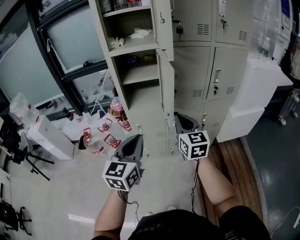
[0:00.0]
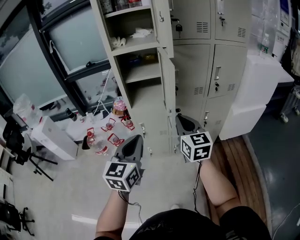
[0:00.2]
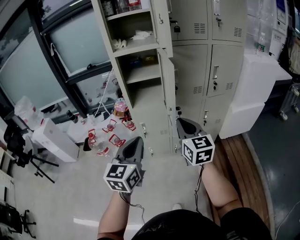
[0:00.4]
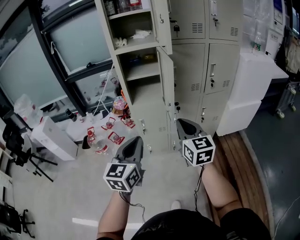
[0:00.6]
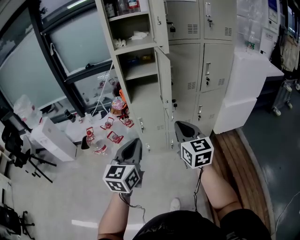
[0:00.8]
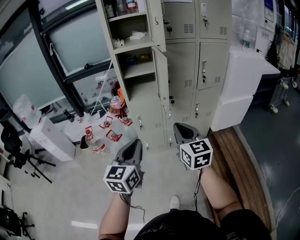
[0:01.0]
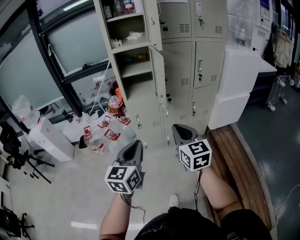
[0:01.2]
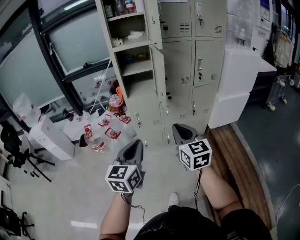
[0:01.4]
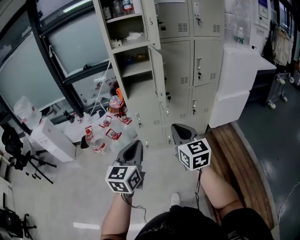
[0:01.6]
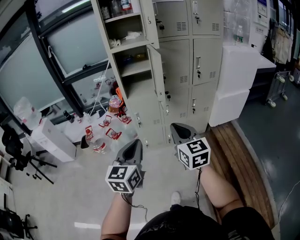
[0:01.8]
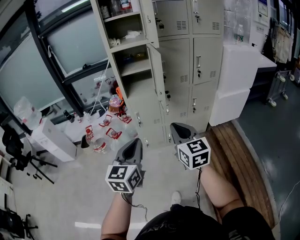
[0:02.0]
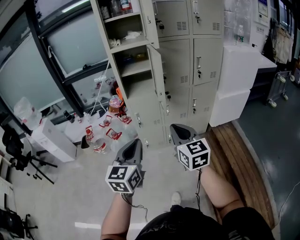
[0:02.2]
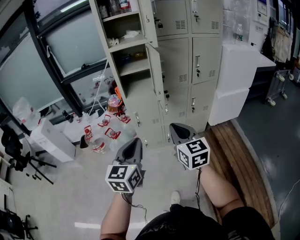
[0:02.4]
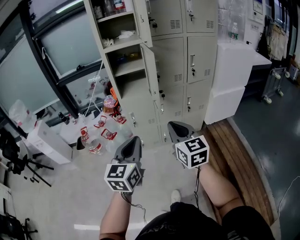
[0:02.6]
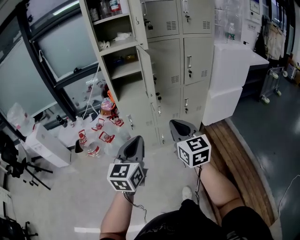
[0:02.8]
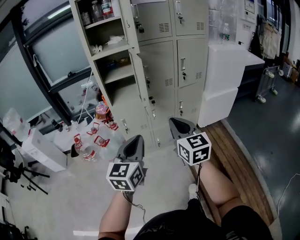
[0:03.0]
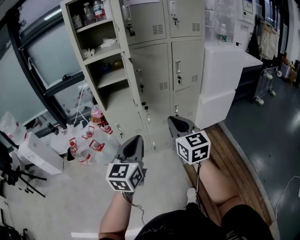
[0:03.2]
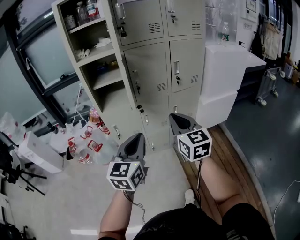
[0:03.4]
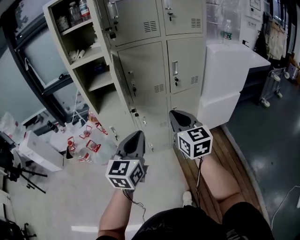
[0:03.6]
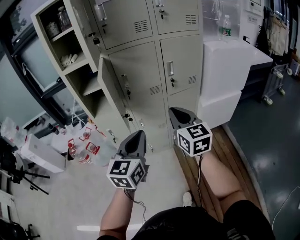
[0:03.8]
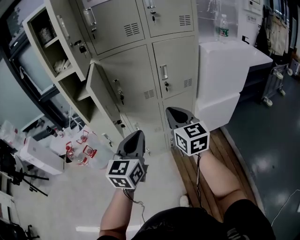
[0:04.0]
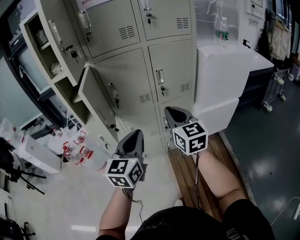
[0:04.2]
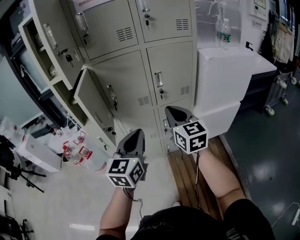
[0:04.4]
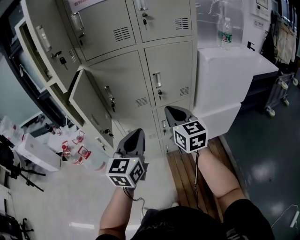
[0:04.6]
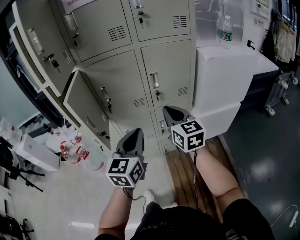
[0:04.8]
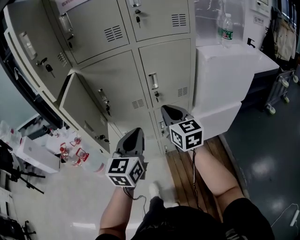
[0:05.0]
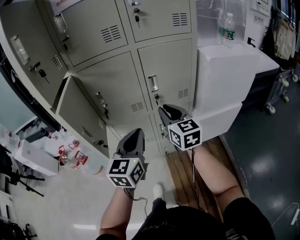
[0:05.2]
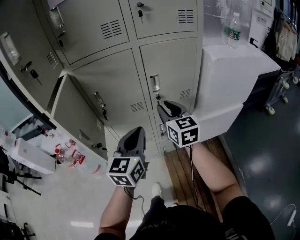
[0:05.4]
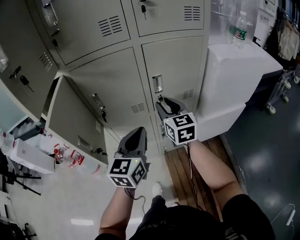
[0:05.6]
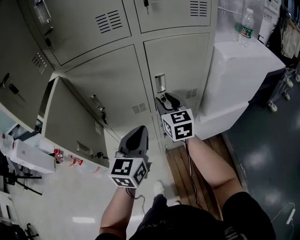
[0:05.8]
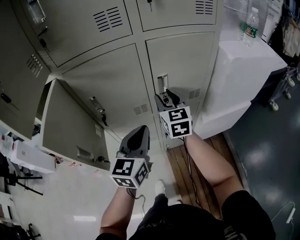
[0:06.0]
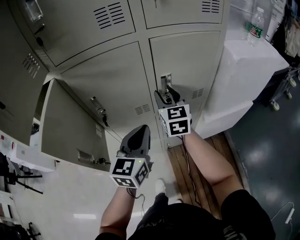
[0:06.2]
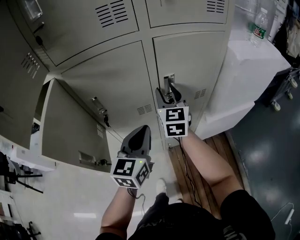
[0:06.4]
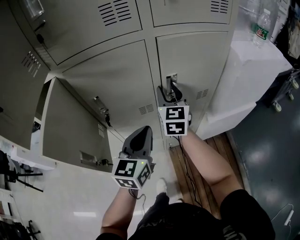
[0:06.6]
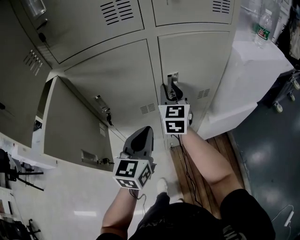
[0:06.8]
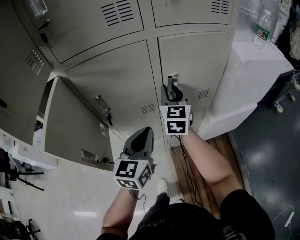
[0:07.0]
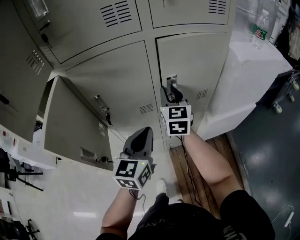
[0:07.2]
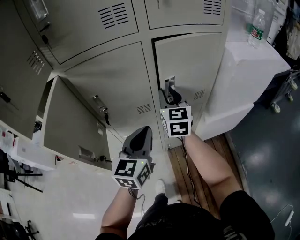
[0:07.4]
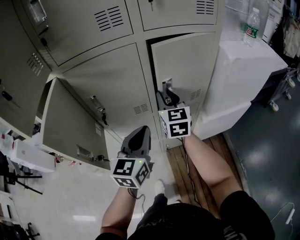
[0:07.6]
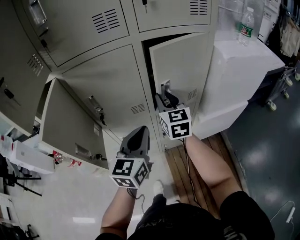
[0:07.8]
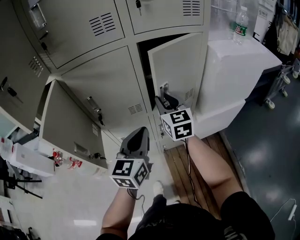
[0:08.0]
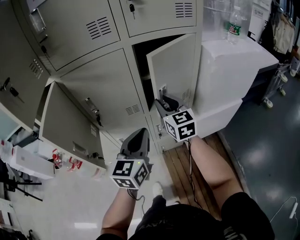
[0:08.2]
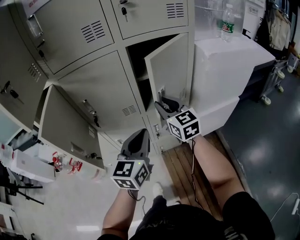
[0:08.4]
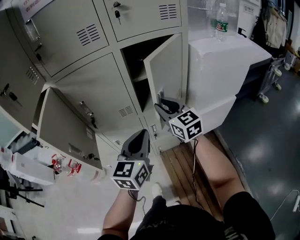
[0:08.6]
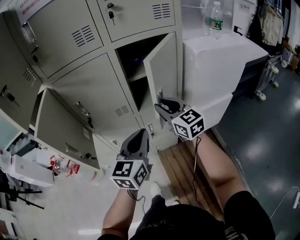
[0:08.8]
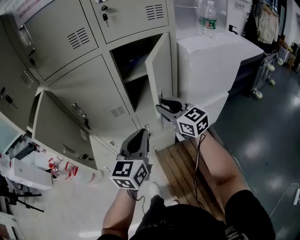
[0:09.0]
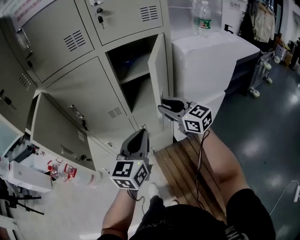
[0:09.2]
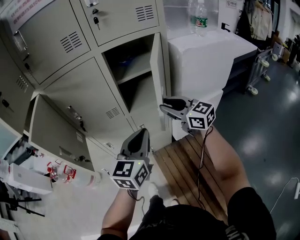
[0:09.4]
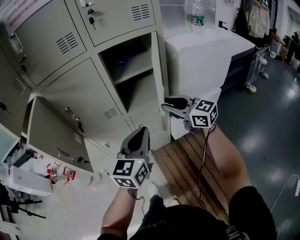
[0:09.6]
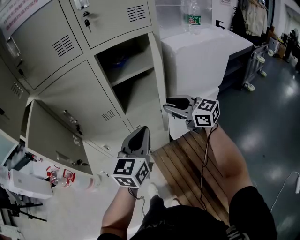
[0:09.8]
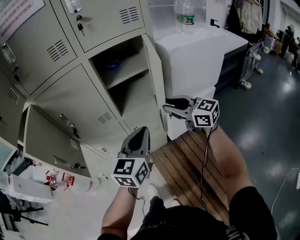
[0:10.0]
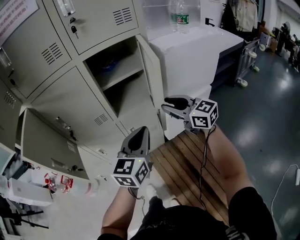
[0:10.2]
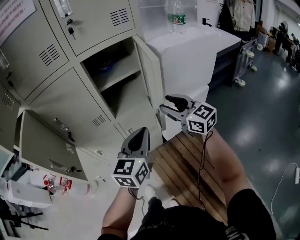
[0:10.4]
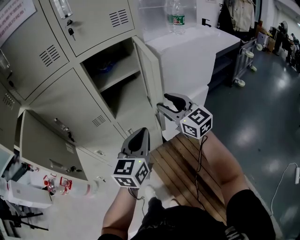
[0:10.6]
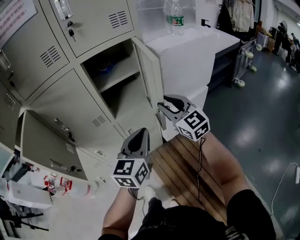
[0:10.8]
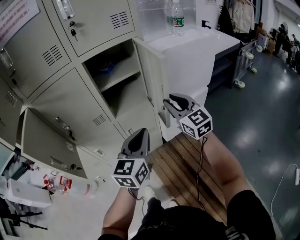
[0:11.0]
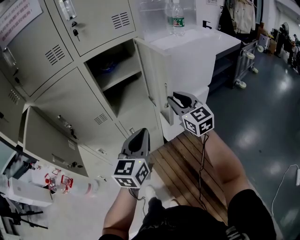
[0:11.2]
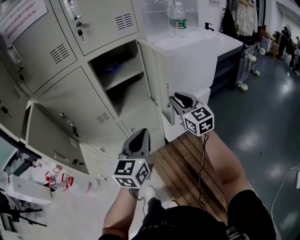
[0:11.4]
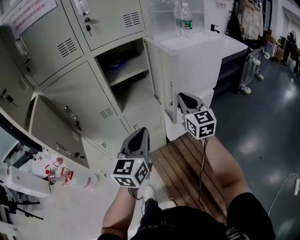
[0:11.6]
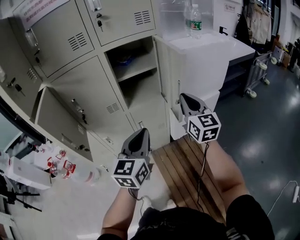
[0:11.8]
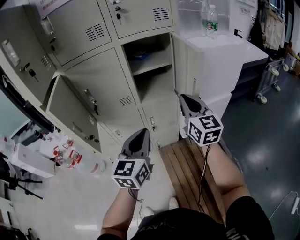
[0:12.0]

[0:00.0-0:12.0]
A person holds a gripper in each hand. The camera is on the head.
0.0 to 1.6 s: The grippers both shift backward by some 25 cm.
1.6 to 3.0 s: The two grippers go roughly 10 cm to the right.
3.0 to 4.4 s: The right gripper shifts about 35 cm forward and to the right; the left gripper shifts approximately 35 cm to the right and forward.
4.4 to 6.0 s: Both grippers travel together forward, about 25 cm. The right gripper opens up.
6.0 to 7.6 s: The grippers move only a little.
7.6 to 9.0 s: The left gripper heads to the right and backward, covering some 10 cm. The right gripper travels backward and to the right by about 15 cm, and swivels roughly 20 degrees.
9.0 to 10.4 s: Both grippers move to the right, roughly 10 cm.
10.4 to 12.0 s: The right gripper travels backward and upward by some 10 cm, and closes its fingers. Meanwhile the left gripper heads backward and to the left, covering about 10 cm.

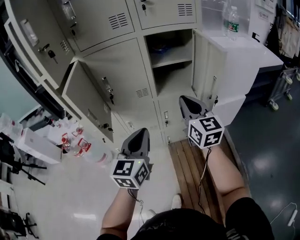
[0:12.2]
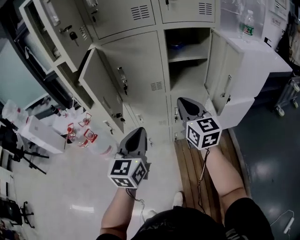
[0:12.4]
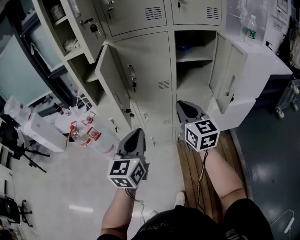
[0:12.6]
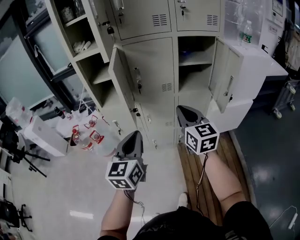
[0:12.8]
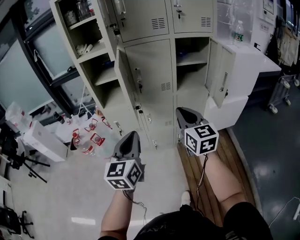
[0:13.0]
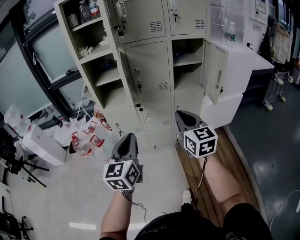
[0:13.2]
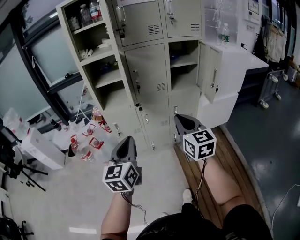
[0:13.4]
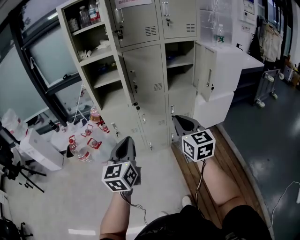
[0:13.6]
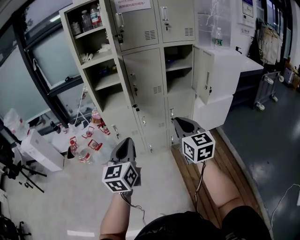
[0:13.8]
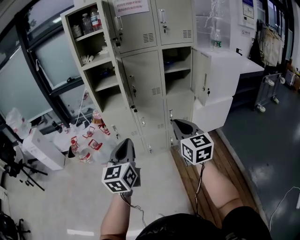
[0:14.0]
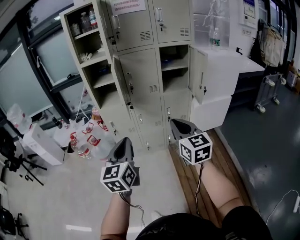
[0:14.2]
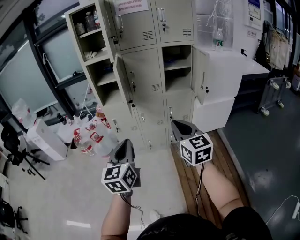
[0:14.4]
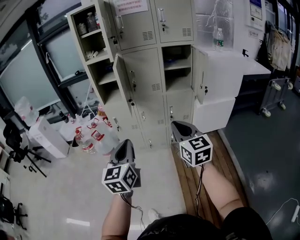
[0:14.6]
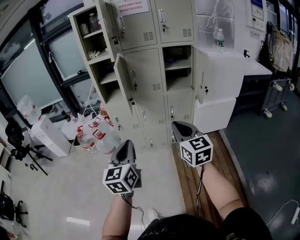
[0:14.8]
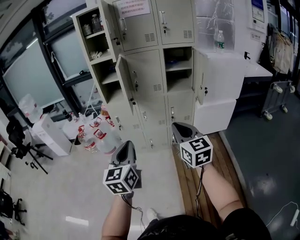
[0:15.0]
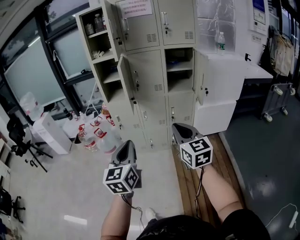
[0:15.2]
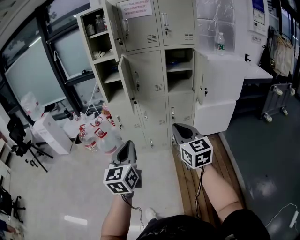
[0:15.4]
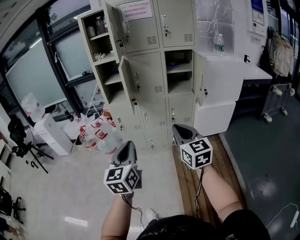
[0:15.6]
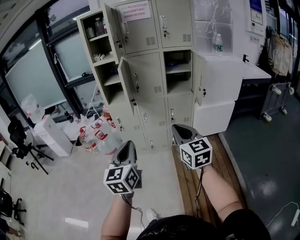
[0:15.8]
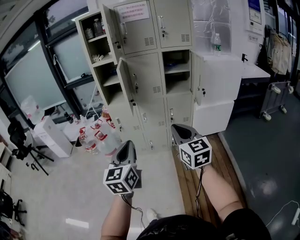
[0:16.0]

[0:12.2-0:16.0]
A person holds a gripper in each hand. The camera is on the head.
12.2 to 13.4 s: The right gripper goes approximately 30 cm backward and to the left, while the left gripper heads to the left and backward, covering about 30 cm.
13.4 to 14.8 s: The two grippers go approximately 15 cm backward and to the right.
14.8 to 16.0 s: The left gripper ends up about 5 cm from where it was.

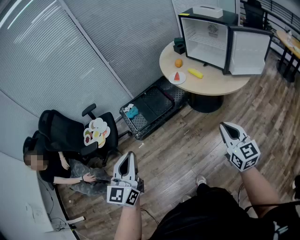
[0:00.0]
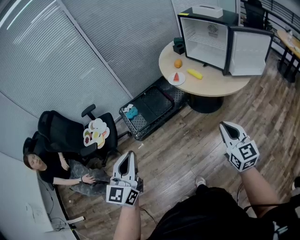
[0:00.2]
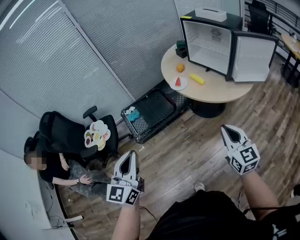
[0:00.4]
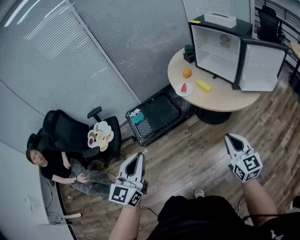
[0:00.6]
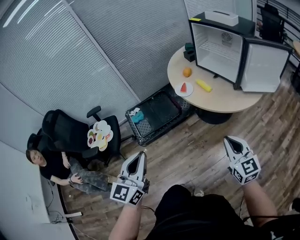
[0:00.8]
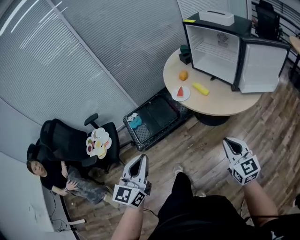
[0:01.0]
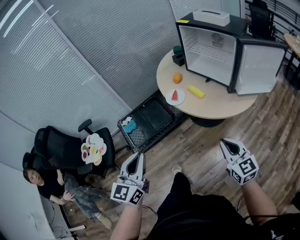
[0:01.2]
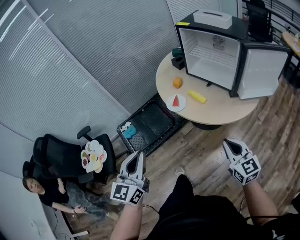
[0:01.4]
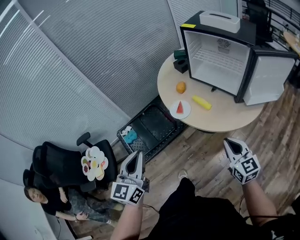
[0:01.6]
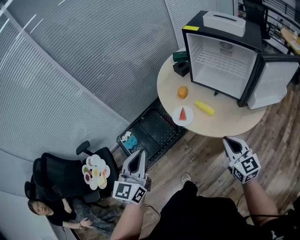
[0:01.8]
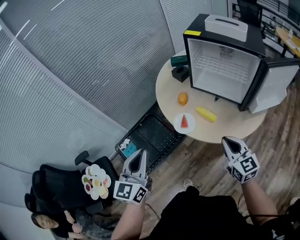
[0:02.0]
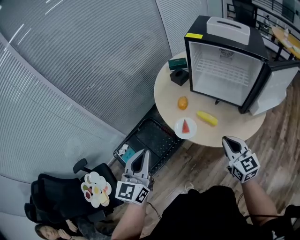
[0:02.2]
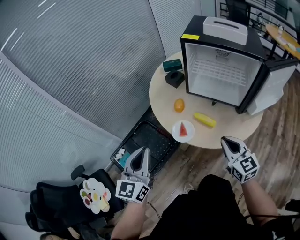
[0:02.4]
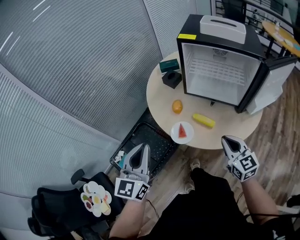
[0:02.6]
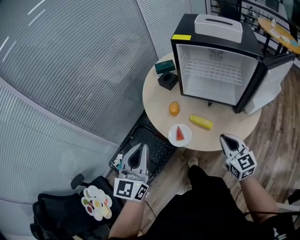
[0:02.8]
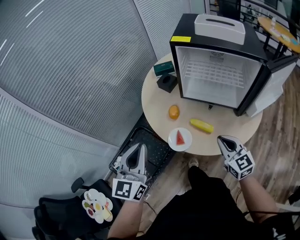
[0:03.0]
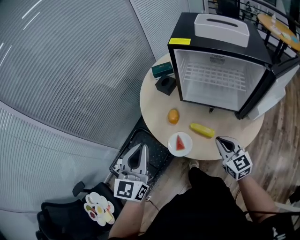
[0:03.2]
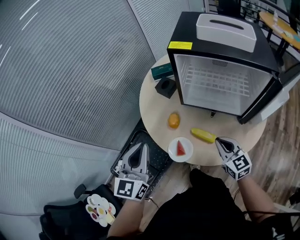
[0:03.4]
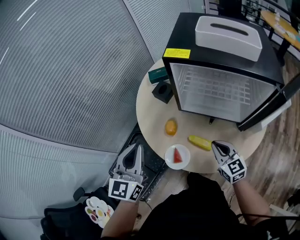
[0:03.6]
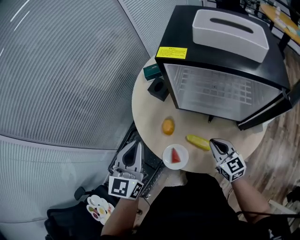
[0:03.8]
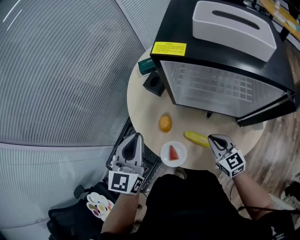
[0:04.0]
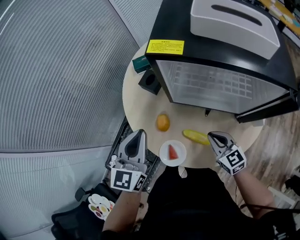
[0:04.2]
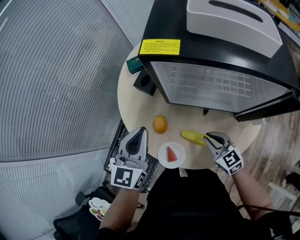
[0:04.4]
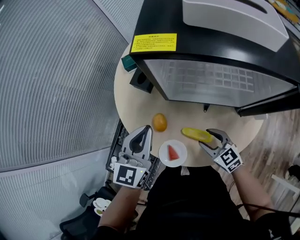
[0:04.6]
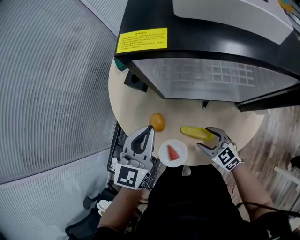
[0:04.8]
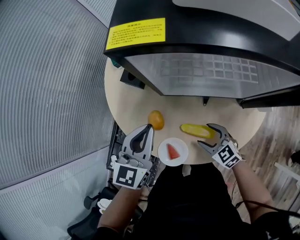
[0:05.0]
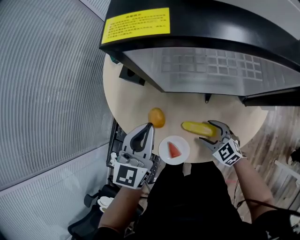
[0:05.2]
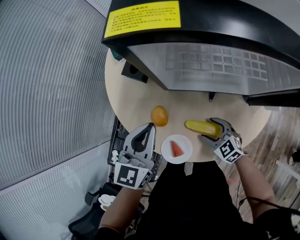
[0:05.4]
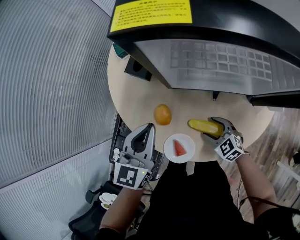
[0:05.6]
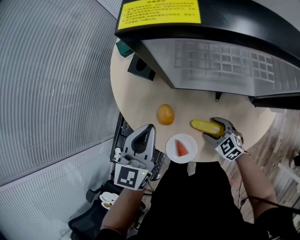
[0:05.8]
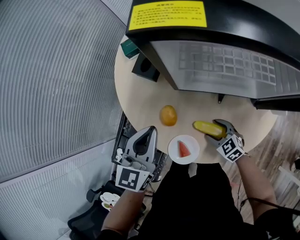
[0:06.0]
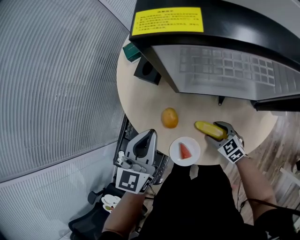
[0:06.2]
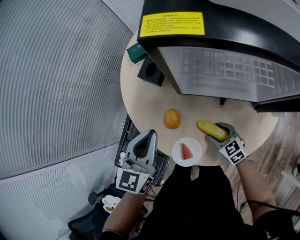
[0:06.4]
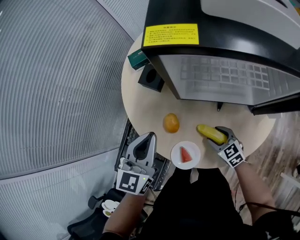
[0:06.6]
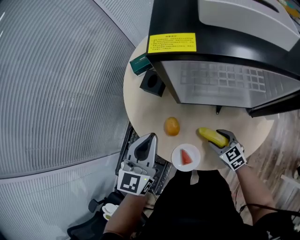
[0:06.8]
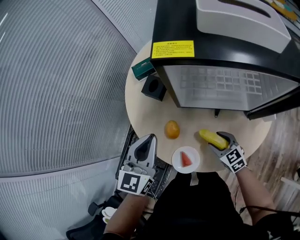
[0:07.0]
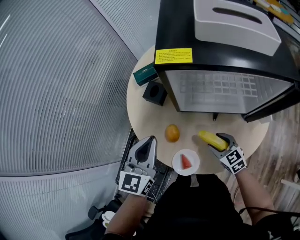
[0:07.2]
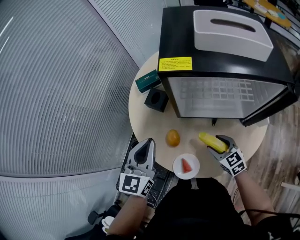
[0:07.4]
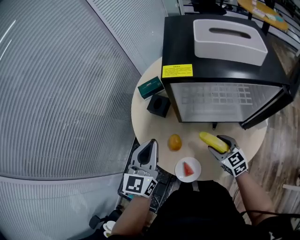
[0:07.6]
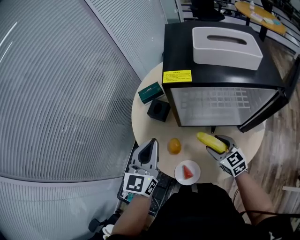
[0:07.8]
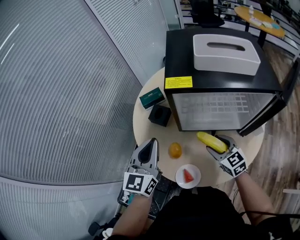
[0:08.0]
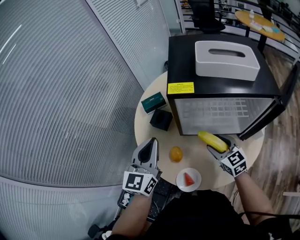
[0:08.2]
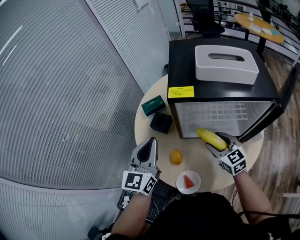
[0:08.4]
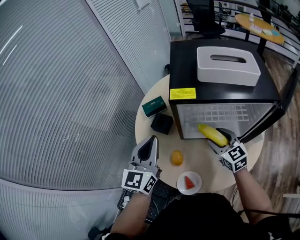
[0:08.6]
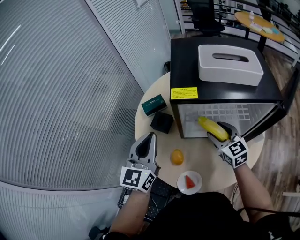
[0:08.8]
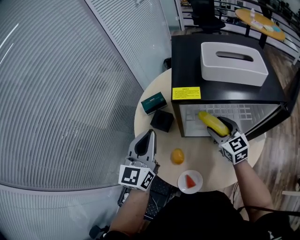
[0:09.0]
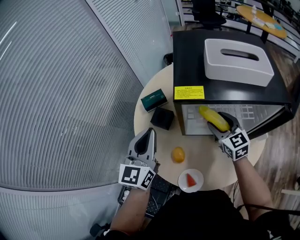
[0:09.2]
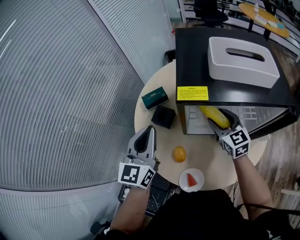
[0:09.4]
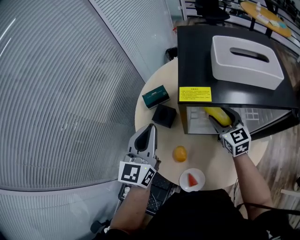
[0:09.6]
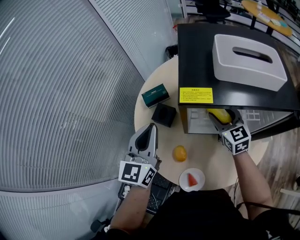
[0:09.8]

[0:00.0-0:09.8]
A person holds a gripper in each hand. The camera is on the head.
0.0 to 1.4 s: The left gripper goes roughly 30 cm forward and to the right. The right gripper heads forward, covering roughly 20 cm.
1.4 to 2.8 s: Both grippers travel together forward, roughly 30 cm.
2.8 to 4.2 s: The left gripper moves forward, approximately 25 cm. The right gripper shifts some 20 cm forward and downward.
4.2 to 5.6 s: The left gripper travels downward by about 10 cm; the right gripper goes some 15 cm downward, turns by approximately 20 degrees, and opens.
5.6 to 7.0 s: The two grippers go about 5 cm upward.
7.0 to 8.4 s: The right gripper shifts roughly 20 cm upward and forward; the left gripper heads upward, covering roughly 10 cm.
8.4 to 9.8 s: The right gripper moves forward, roughly 15 cm; the left gripper goes approximately 10 cm forward.
